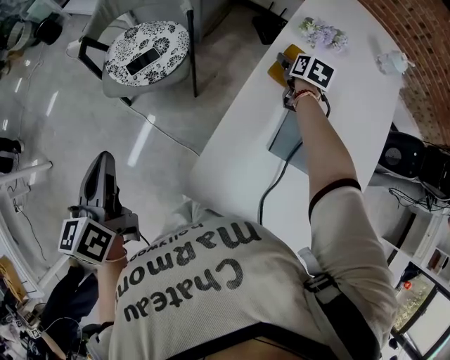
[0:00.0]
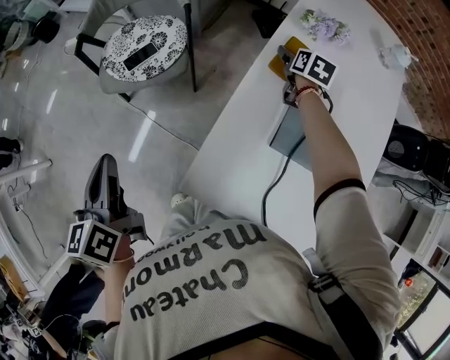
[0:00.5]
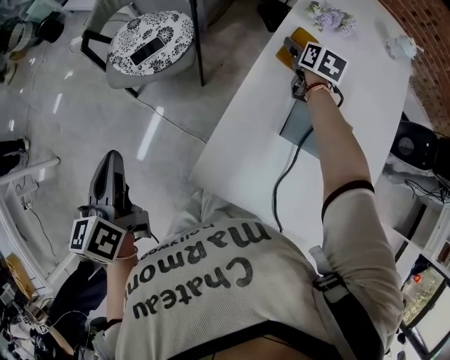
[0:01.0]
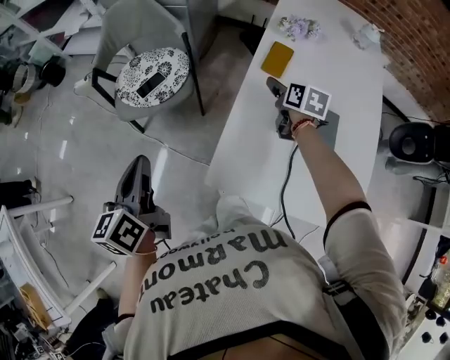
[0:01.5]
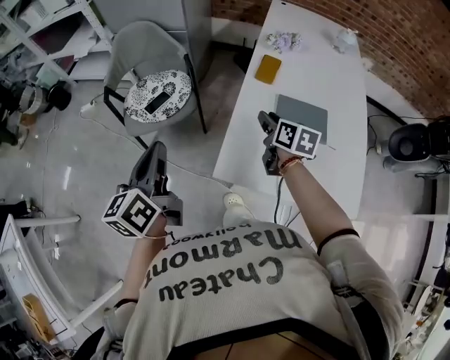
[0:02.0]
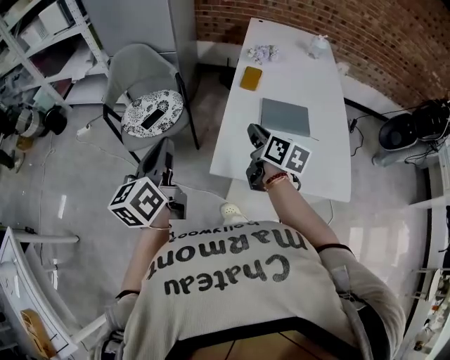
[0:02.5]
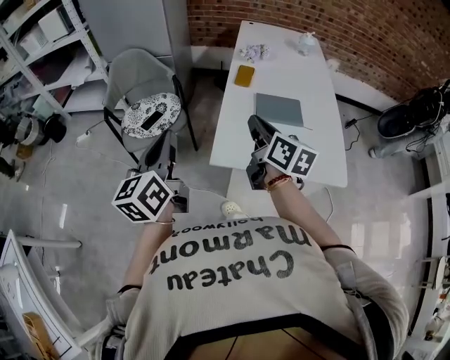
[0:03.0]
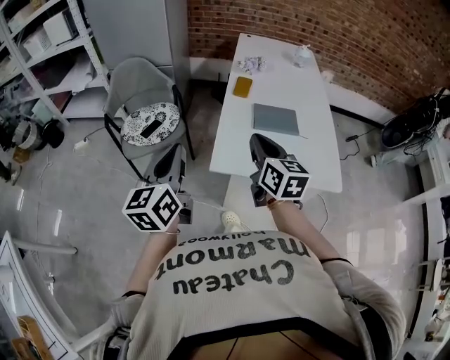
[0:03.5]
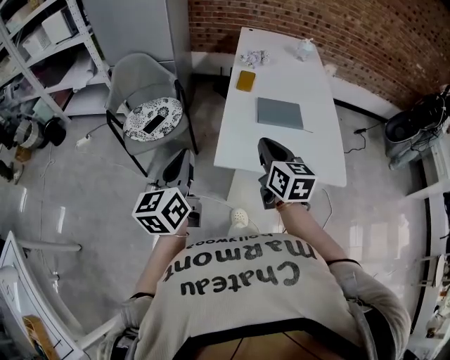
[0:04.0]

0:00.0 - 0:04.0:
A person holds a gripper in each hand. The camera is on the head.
0:00.0 - 0:02.0: The right gripper travels backward and upward by approximately 30 cm, swivels approximately 20 degrees, and closes; the left gripper goes about 10 cm backward and upward, and swivels some 20 degrees.
0:02.0 - 0:04.0: The right gripper is displaced backward and upward by some 25 cm, and swivels about 20 degrees. Meanwhile the left gripper shifts roughly 10 cm backward.

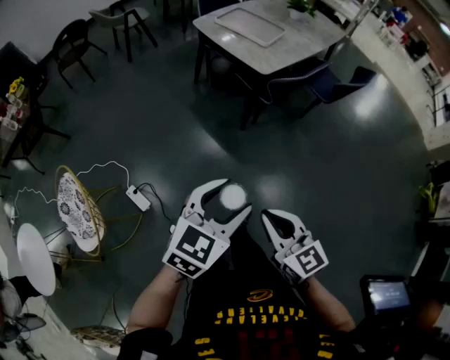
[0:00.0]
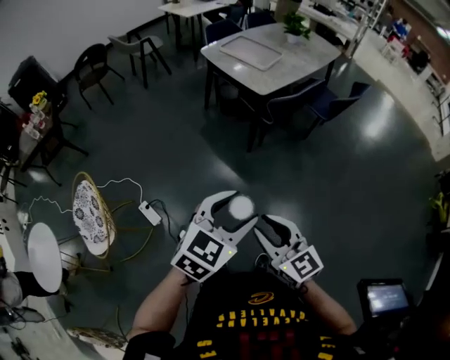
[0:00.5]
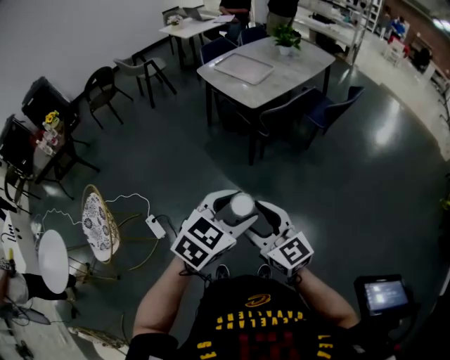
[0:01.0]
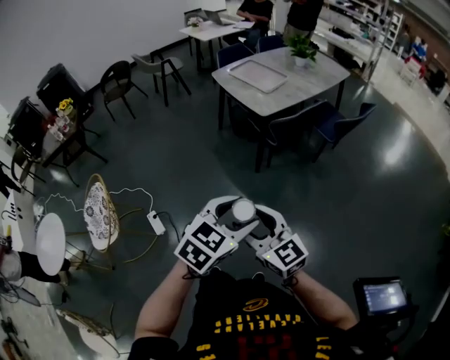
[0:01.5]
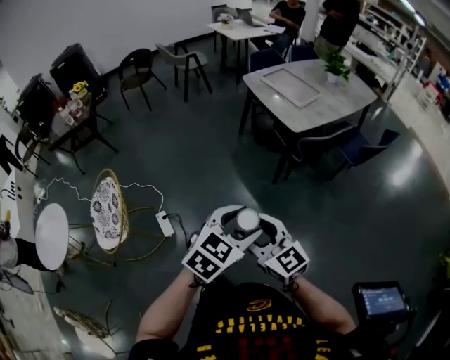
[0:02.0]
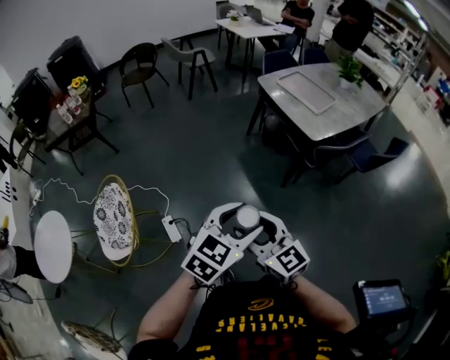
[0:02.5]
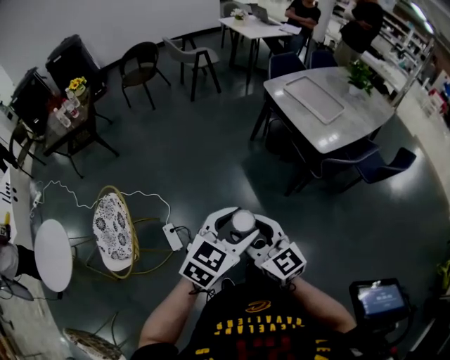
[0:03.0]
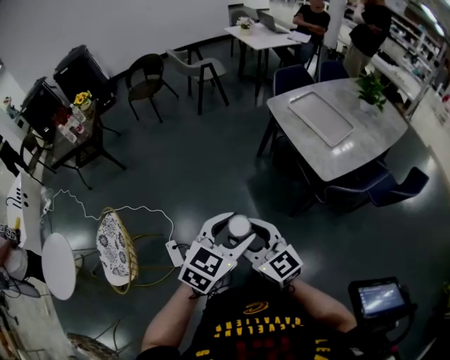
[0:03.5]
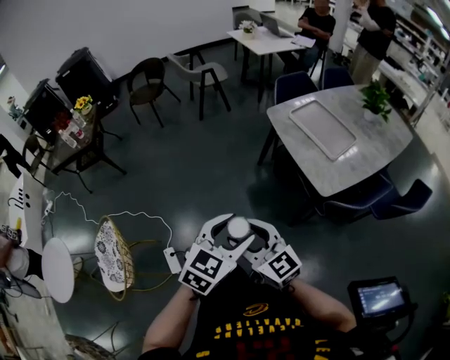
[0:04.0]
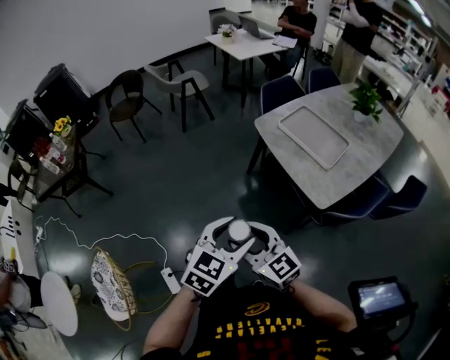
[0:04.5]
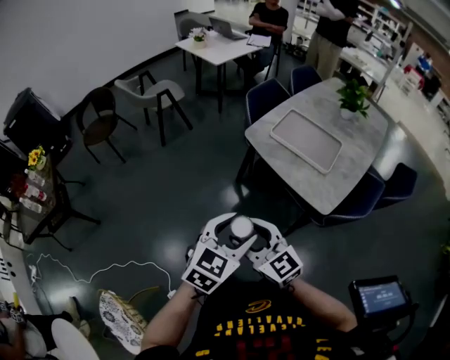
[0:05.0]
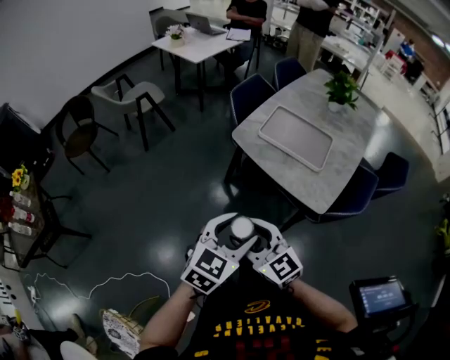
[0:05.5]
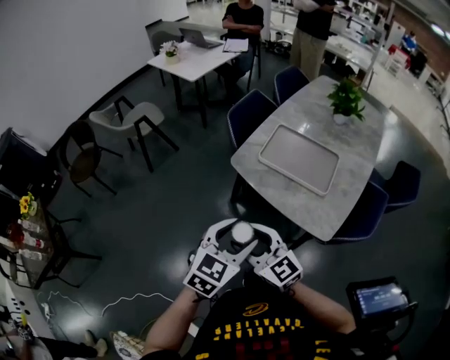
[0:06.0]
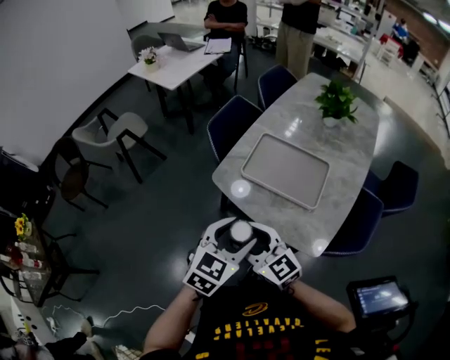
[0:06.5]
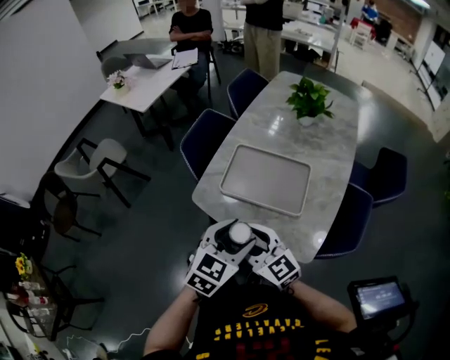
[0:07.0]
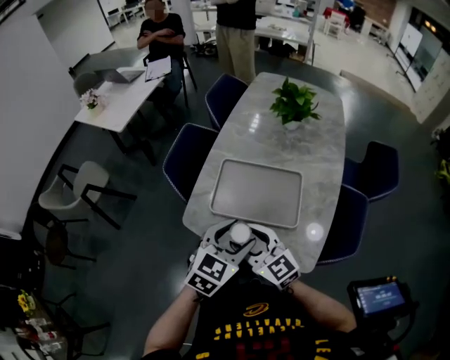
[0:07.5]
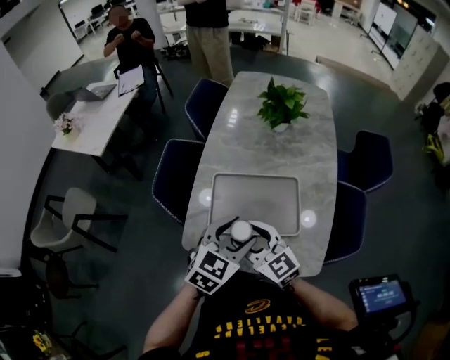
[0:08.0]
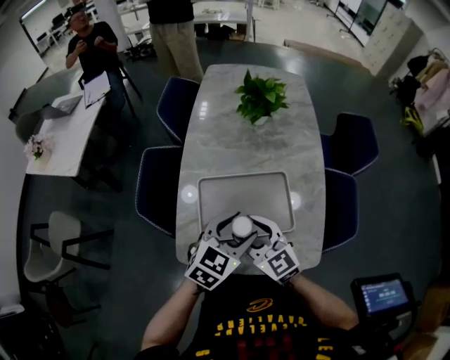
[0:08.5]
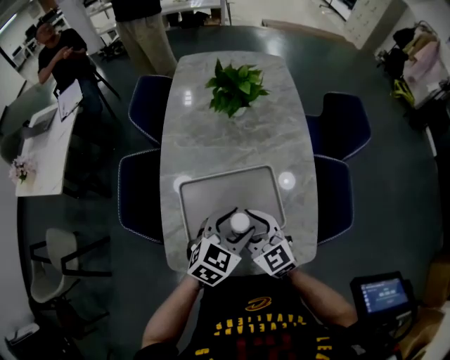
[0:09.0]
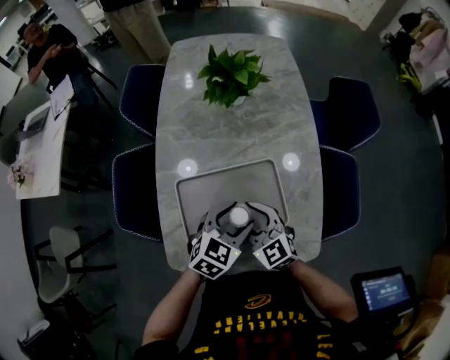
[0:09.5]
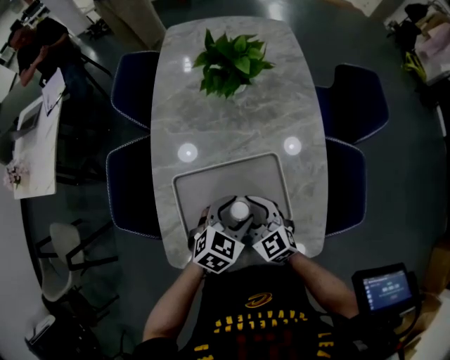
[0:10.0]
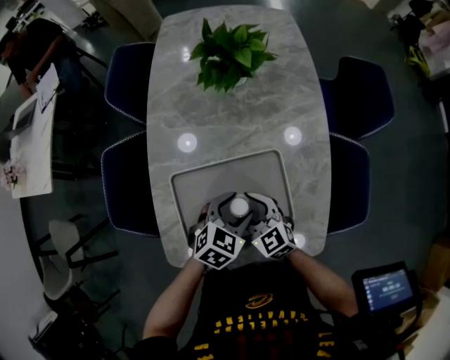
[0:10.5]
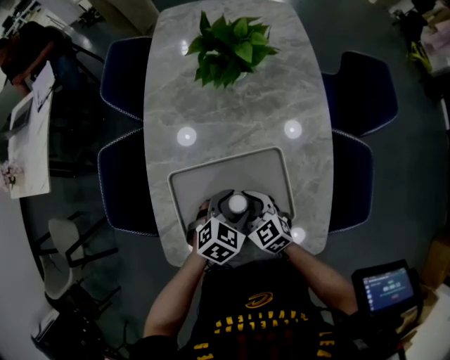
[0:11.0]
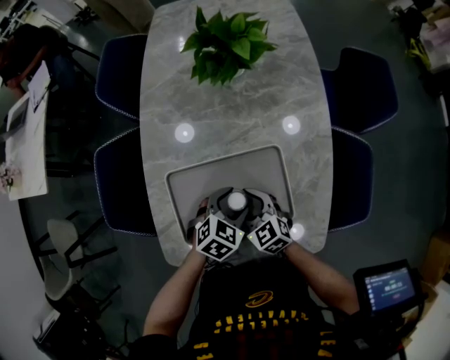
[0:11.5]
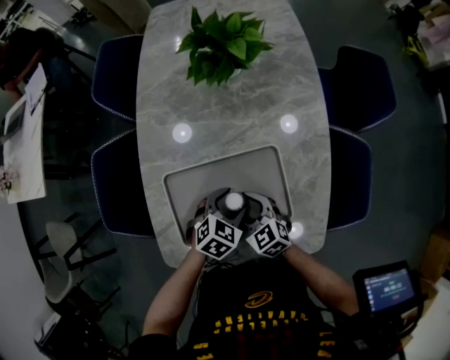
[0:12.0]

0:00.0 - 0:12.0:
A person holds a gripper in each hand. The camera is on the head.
0:00.0 - 0:02.0: The left gripper goes to the right and returns, roughly 15 cm each way. The right gripper is displaced to the left by approximately 5 cm, swivels roughly 20 degrees, and opens.
0:02.0 - 0:04.0: Both grippers move forward, about 35 cm.
0:04.0 - 0:06.0: The left gripper shifts by some 35 cm, and rotates roughly 30 degrees, while the right gripper shifts by approximately 35 cm, and changes its angle by some 30 degrees.
0:06.0 - 0:08.0: The right gripper changes place by about 35 cm, and changes its angle by about 30 degrees. The left gripper changes place by about 35 cm, and changes its angle by some 30 degrees.
0:08.0 - 0:10.0: The left gripper moves downward, forward and to the right, roughly 20 cm, and changes its angle by some 20 degrees; the right gripper goes some 20 cm forward, downward and to the right, and turns by approximately 20 degrees.
0:10.0 - 0:12.0: The two grippers go about 10 cm downward.

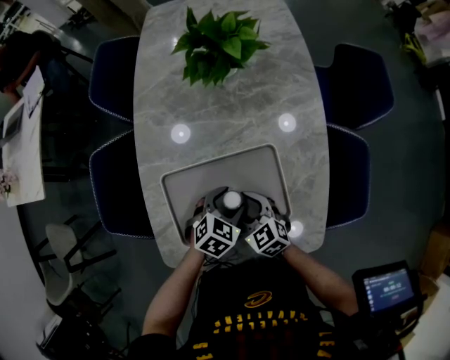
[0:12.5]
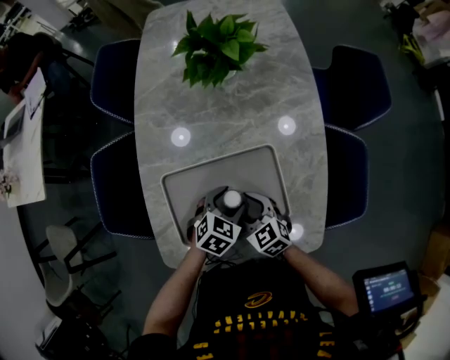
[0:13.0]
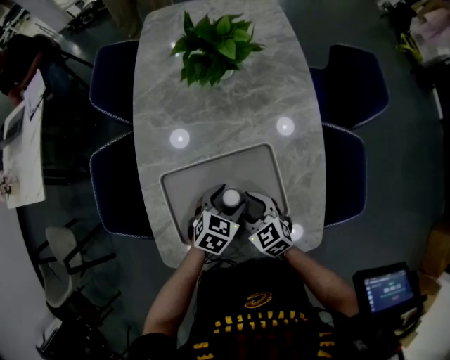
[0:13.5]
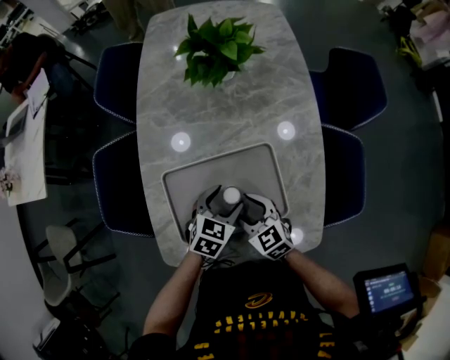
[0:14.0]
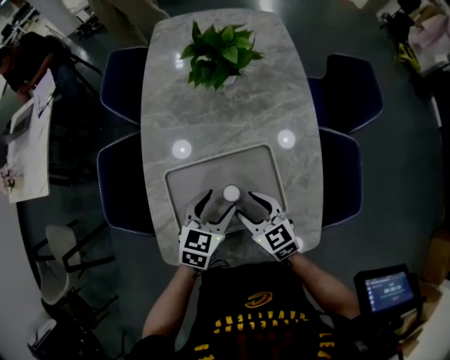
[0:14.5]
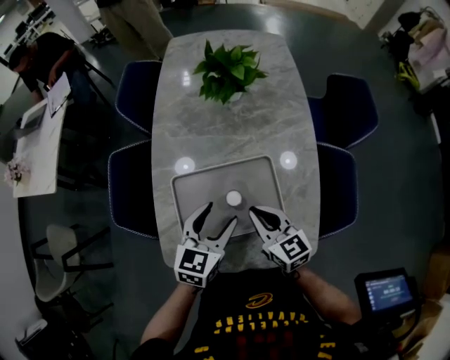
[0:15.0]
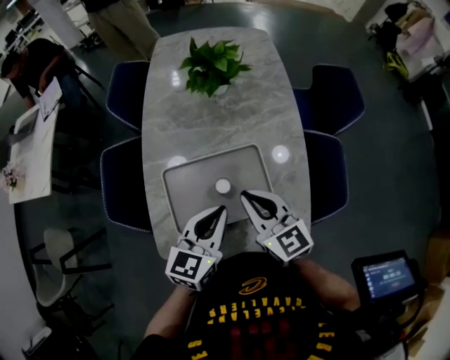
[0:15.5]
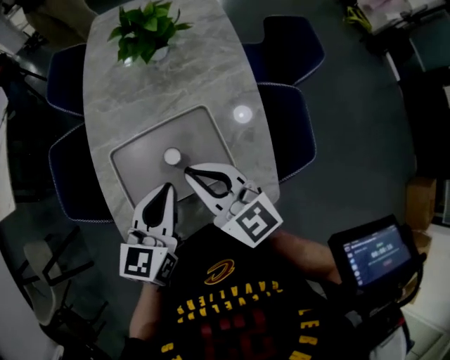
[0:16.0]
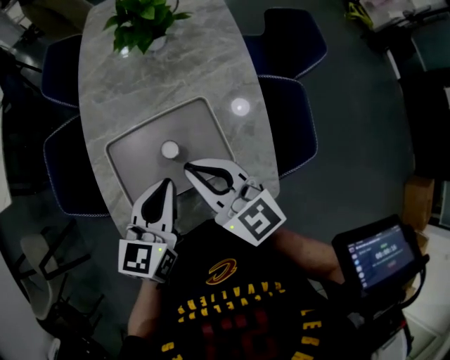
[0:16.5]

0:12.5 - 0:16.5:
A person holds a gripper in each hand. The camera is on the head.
0:12.5 - 0:14.5: The grippers both shift upward by roughly 5 cm. The left gripper rotates approximately 30 degrees.
0:14.5 - 0:16.5: The left gripper goes some 15 cm upward and backward, swivels roughly 20 degrees, and closes its fingers; the right gripper heads upward, covering roughly 20 cm, changes its angle by approximately 20 degrees, and closes up.

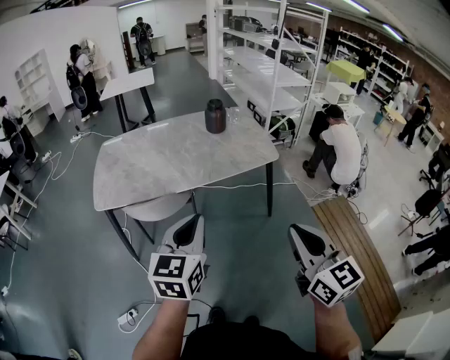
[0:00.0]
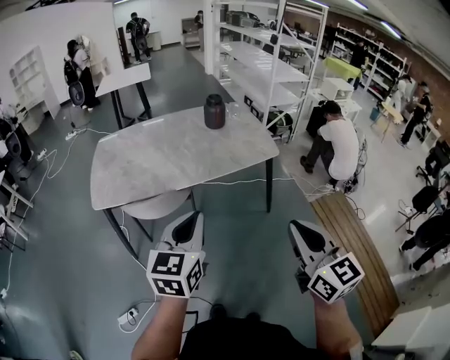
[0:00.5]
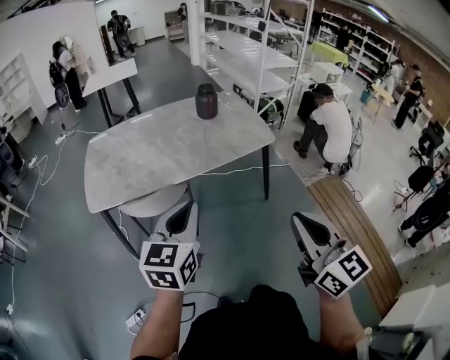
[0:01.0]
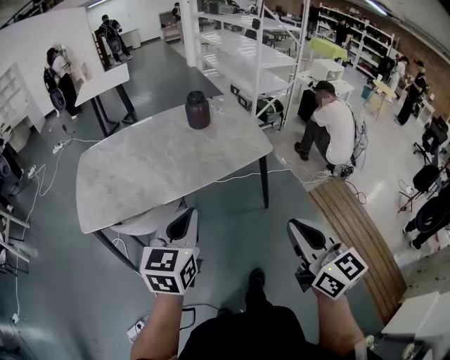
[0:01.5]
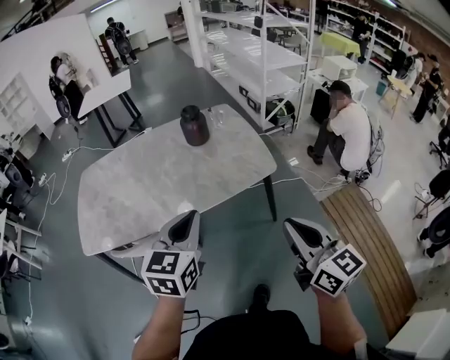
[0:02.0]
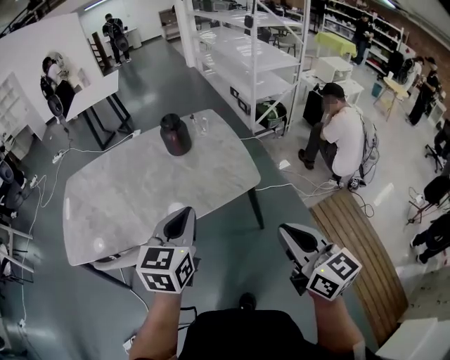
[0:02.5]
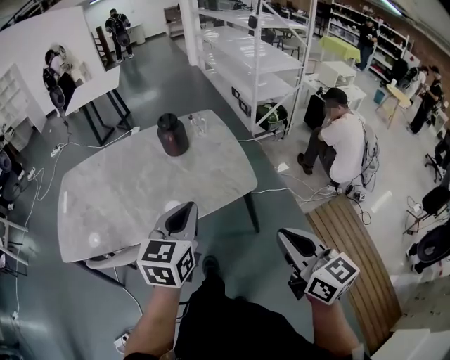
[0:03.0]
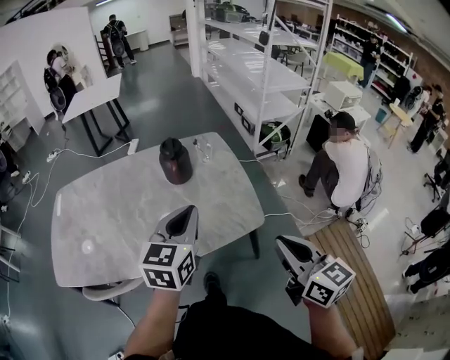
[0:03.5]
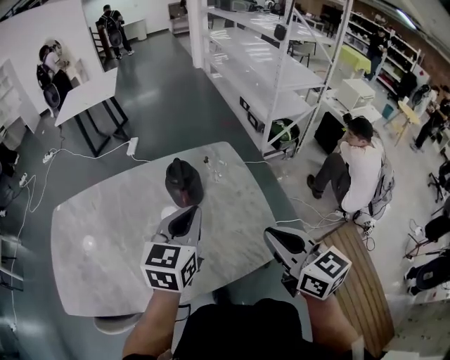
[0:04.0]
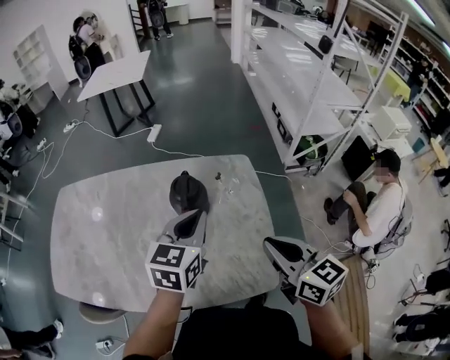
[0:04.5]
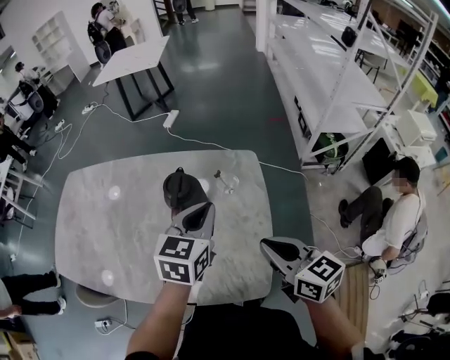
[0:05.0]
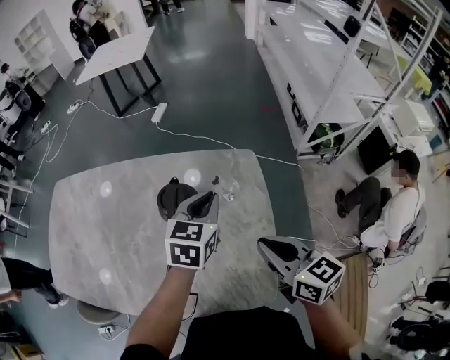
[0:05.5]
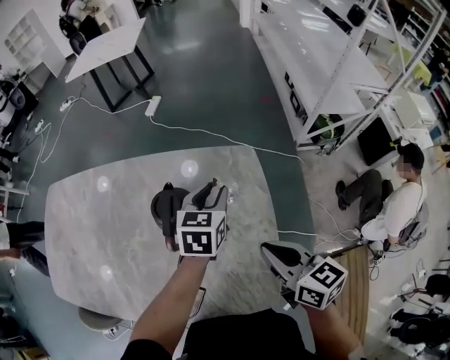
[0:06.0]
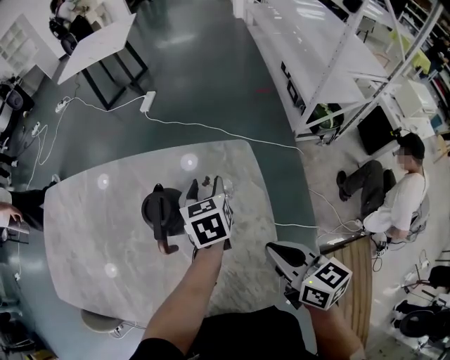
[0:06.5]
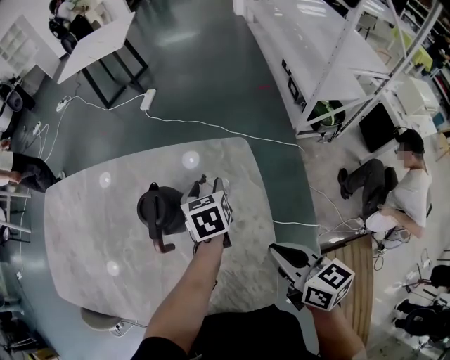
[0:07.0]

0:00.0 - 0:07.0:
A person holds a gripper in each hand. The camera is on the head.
0:00.0 - 0:02.0: The grippers both shift forward by roughly 25 cm.
0:02.0 - 0:03.5: Both grippers travel together forward and to the right, some 25 cm.
0:03.5 - 0:05.0: The two grippers go approximately 30 cm forward. The right gripper swivels some 30 degrees.
0:05.0 - 0:07.0: The left gripper heads downward and forward, covering approximately 25 cm, swivels about 30 degrees, and opens its fingers. The right gripper moves downward, about 5 cm.
